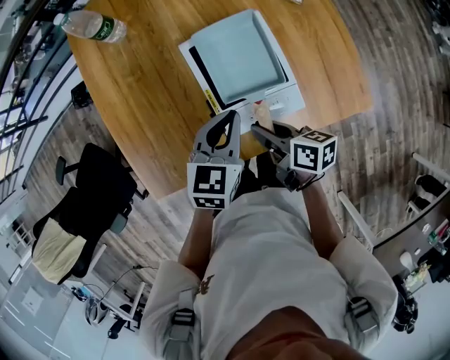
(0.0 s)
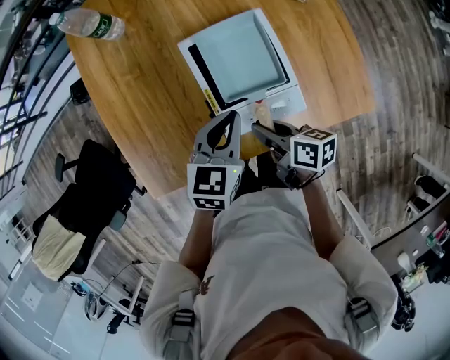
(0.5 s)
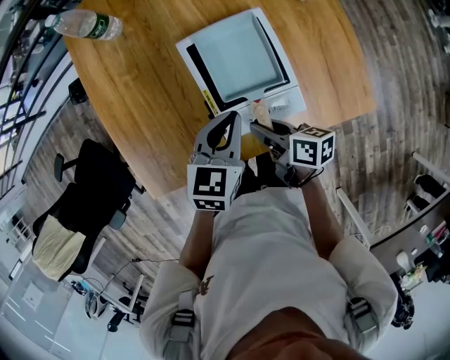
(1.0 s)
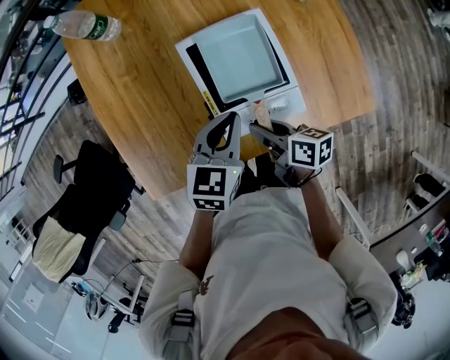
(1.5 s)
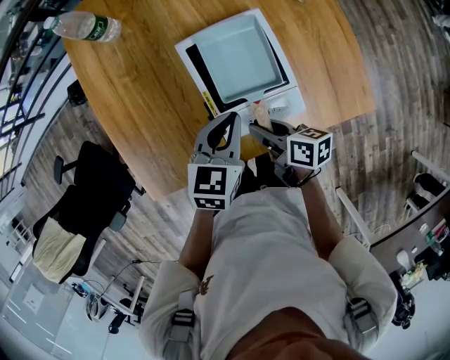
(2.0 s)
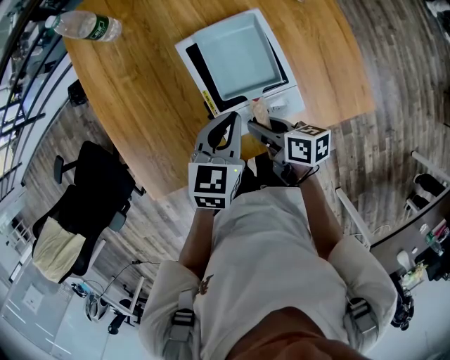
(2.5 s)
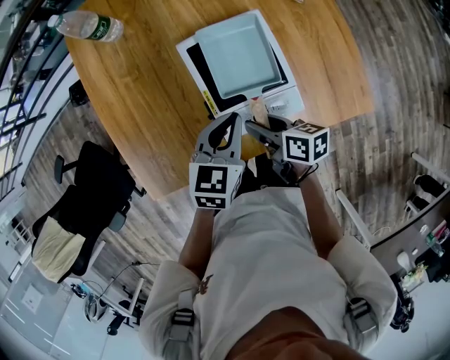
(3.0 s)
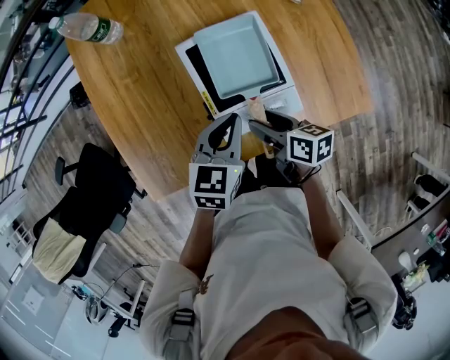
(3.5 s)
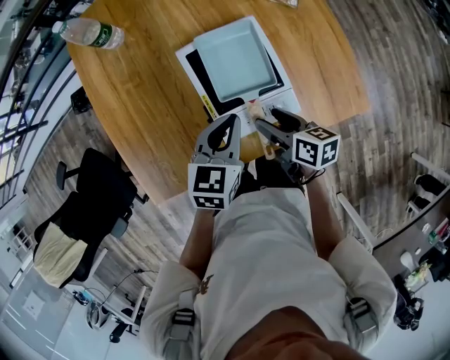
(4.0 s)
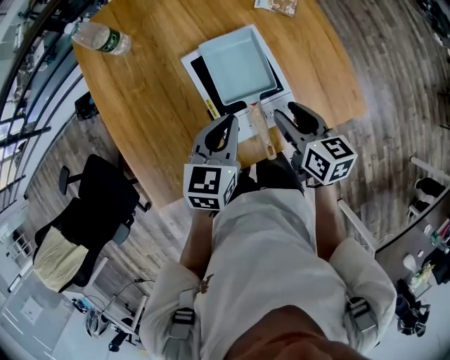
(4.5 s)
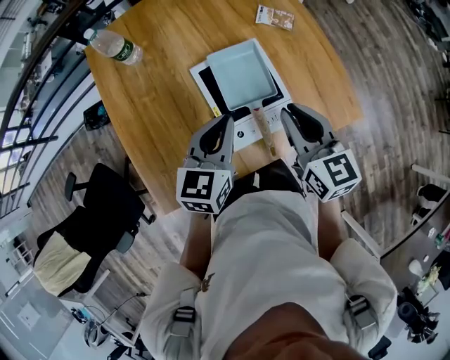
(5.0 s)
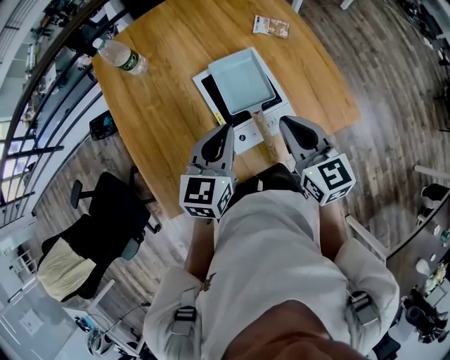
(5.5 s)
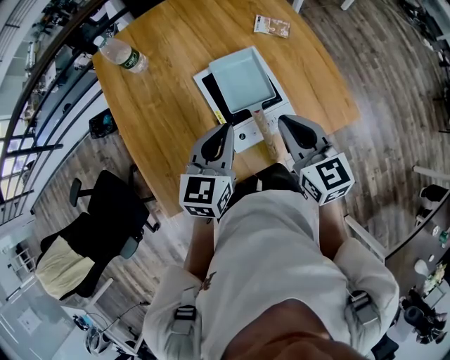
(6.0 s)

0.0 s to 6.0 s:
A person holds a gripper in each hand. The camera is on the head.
0.0 to 2.0 s: The grippers move only a little.
2.0 to 4.0 s: The right gripper opens its fingers.
4.0 to 6.0 s: The left gripper travels upward by some 10 cm. The right gripper shifts some 20 cm upward, changes its angle by approximately 40 degrees, and closes up.

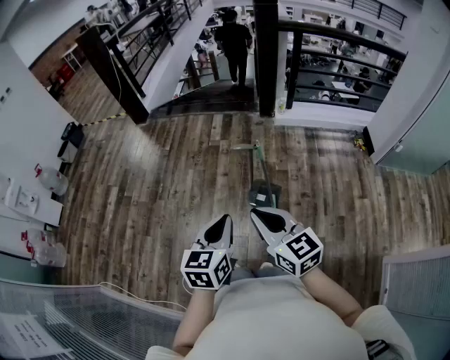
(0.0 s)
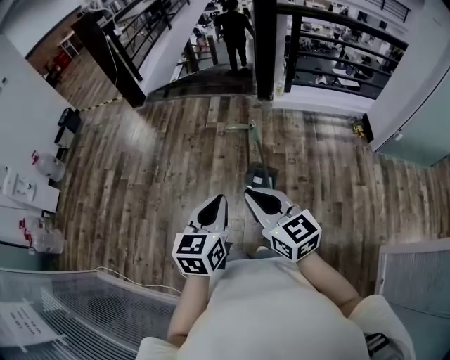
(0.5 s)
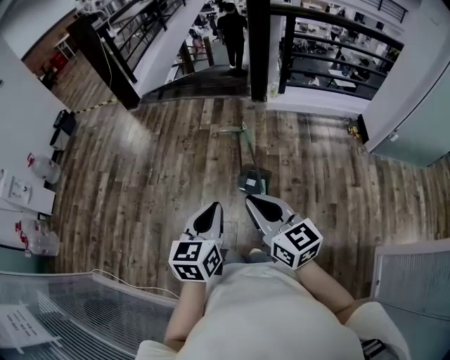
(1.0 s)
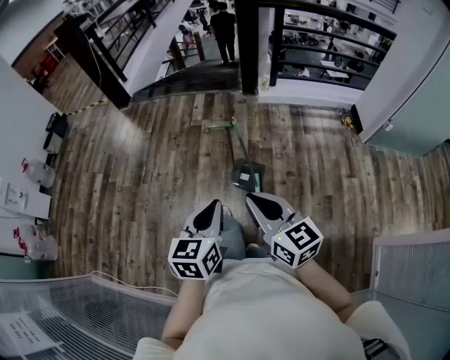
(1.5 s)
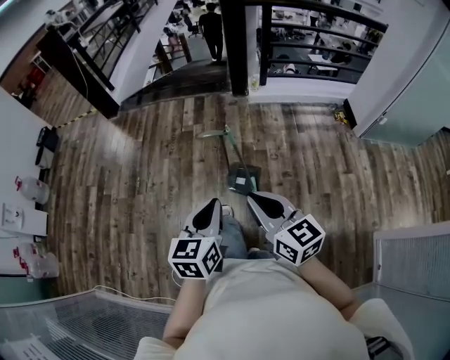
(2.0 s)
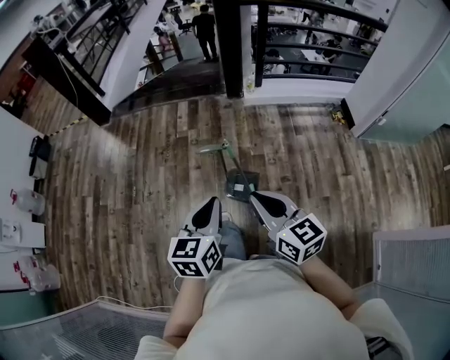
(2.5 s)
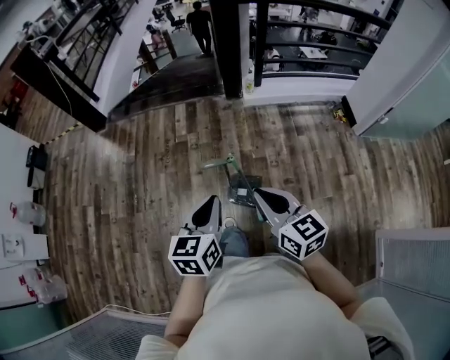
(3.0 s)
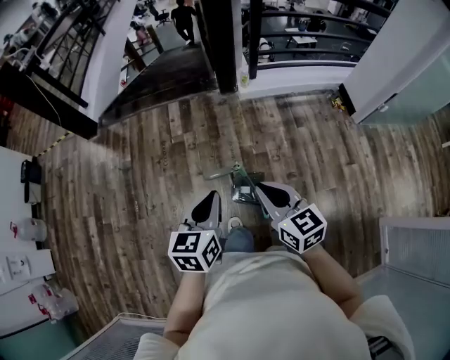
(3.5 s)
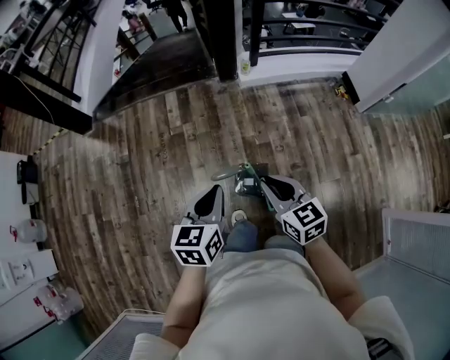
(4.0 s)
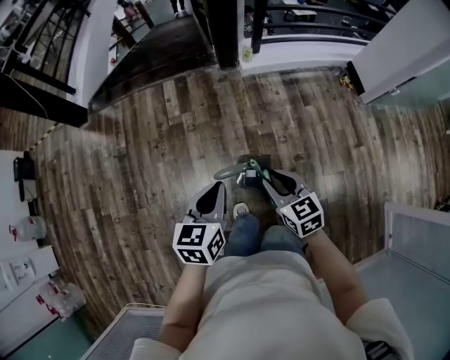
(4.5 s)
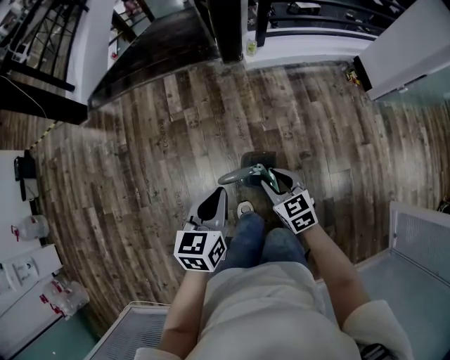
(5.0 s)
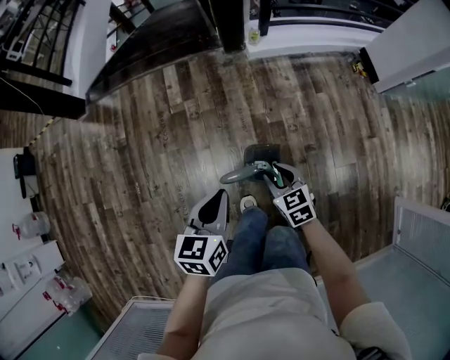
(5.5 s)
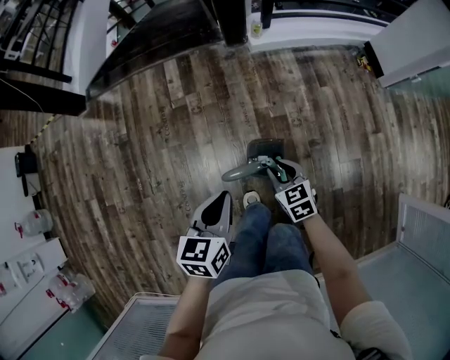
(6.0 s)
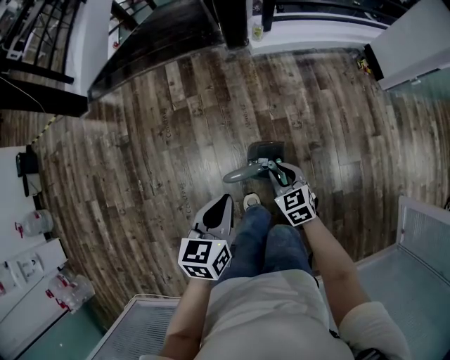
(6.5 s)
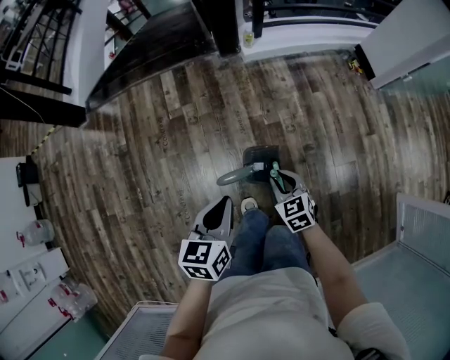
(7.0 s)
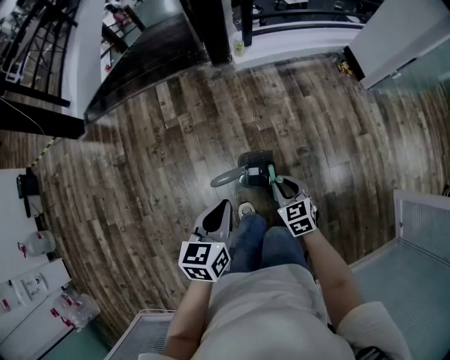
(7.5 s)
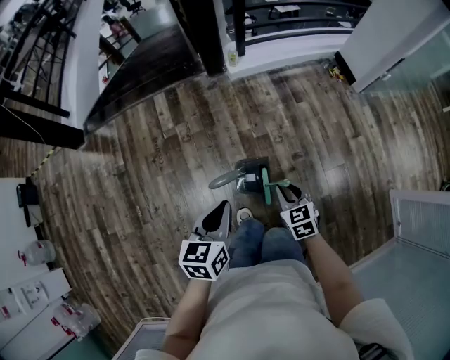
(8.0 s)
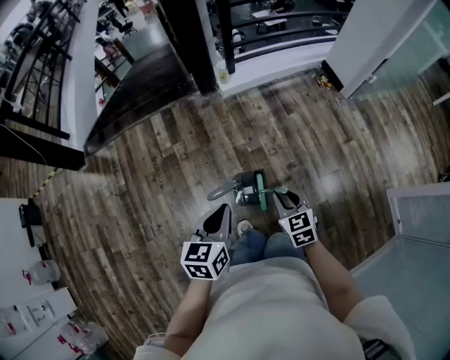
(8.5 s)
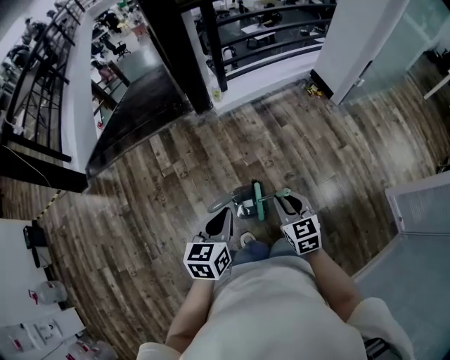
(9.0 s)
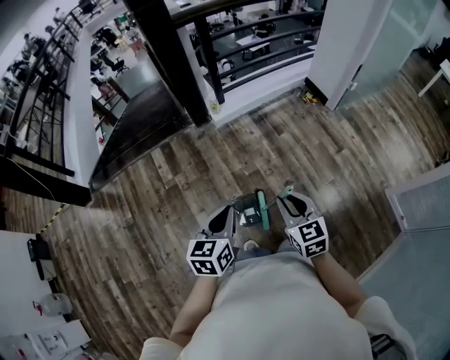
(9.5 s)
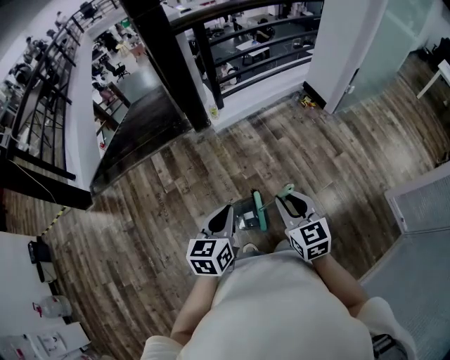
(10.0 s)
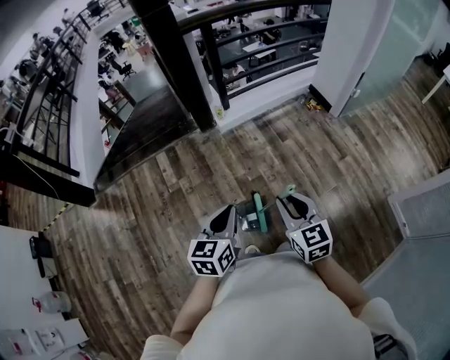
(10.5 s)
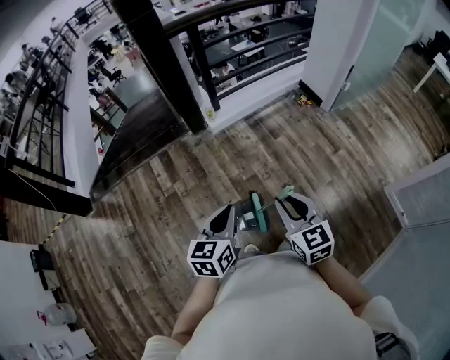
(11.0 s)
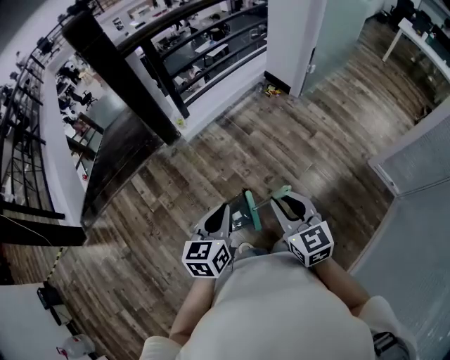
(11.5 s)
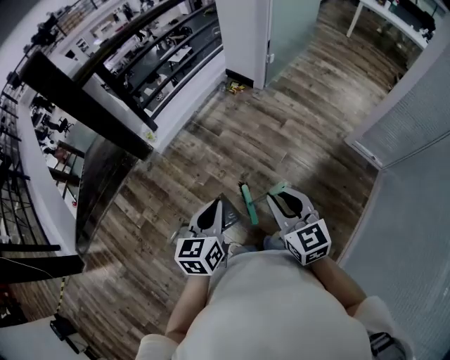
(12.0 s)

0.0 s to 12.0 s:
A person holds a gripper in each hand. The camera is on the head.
0.0 to 2.0 s: Both grippers travel together to the right, some 10 cm.
2.0 to 4.0 s: The left gripper heads forward, covering some 30 cm, while the right gripper shifts approximately 30 cm forward and downward.
4.0 to 6.0 s: The right gripper goes some 25 cm downward. Meanwhile the left gripper travels downward by roughly 10 cm.
6.0 to 8.0 s: The right gripper heads to the right, upward and backward, covering approximately 10 cm, while the left gripper heads upward, covering roughly 5 cm.
8.0 to 10.0 s: The right gripper shifts about 20 cm upward, and rotates roughly 20 degrees, while the left gripper moves upward, about 5 cm.
10.0 to 12.0 s: Both grippers move to the right, roughly 20 cm. The right gripper turns by about 20 degrees. The left gripper changes its angle by roughly 20 degrees.

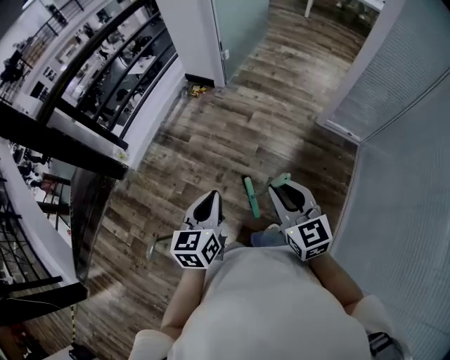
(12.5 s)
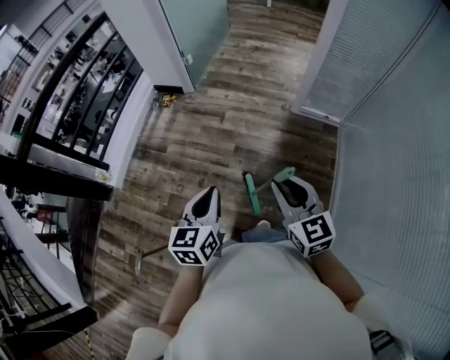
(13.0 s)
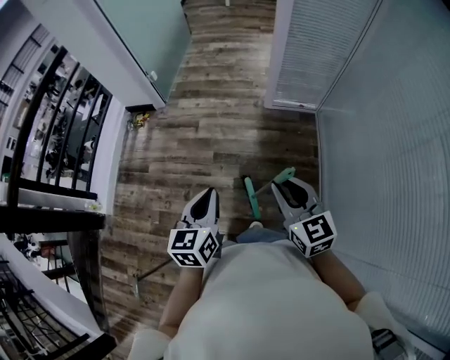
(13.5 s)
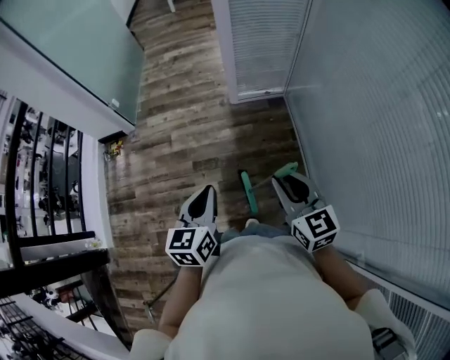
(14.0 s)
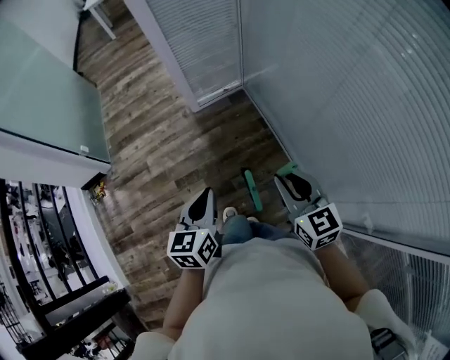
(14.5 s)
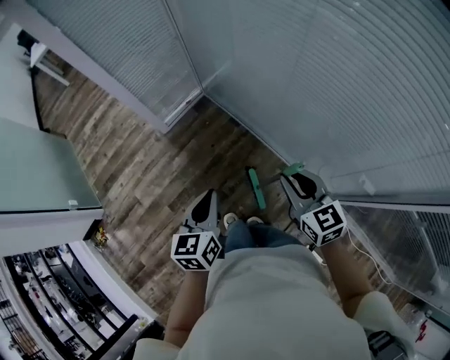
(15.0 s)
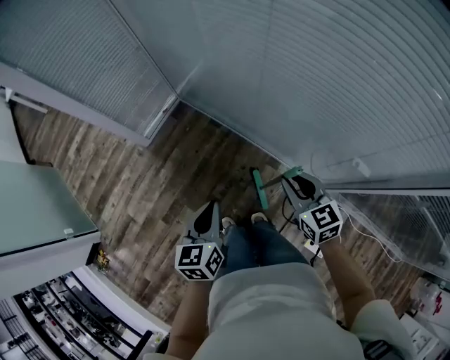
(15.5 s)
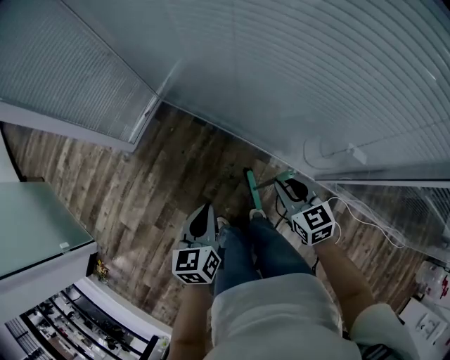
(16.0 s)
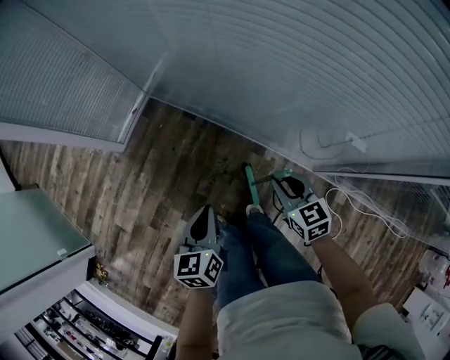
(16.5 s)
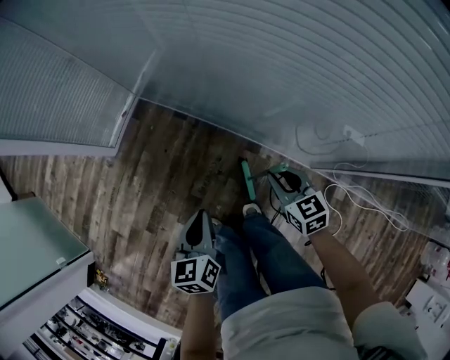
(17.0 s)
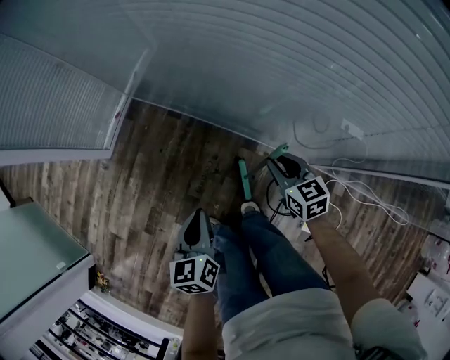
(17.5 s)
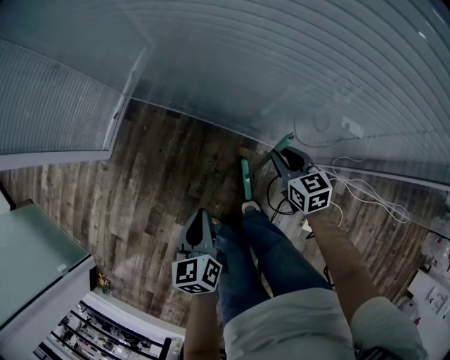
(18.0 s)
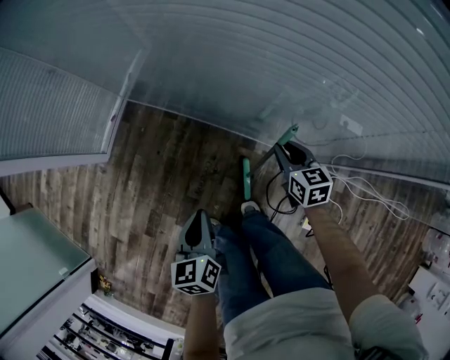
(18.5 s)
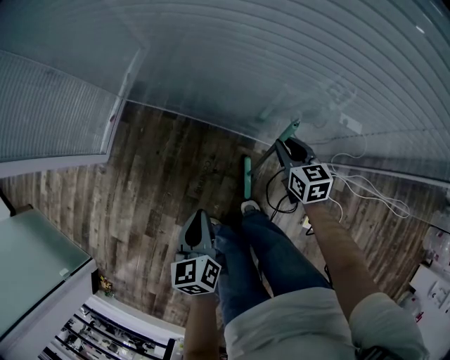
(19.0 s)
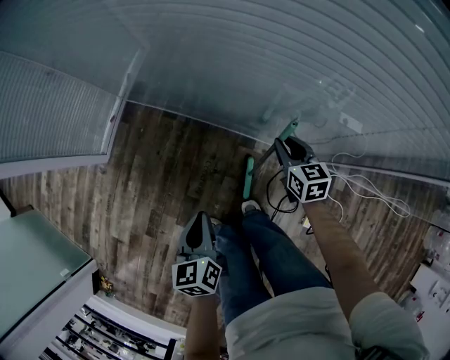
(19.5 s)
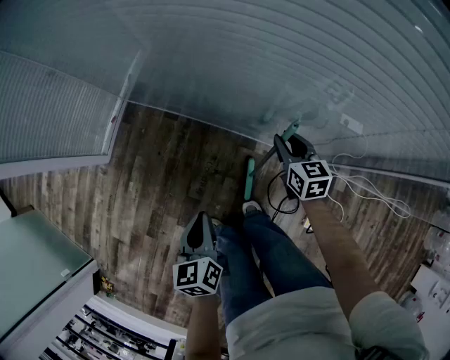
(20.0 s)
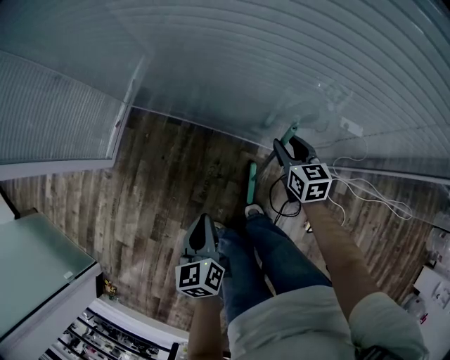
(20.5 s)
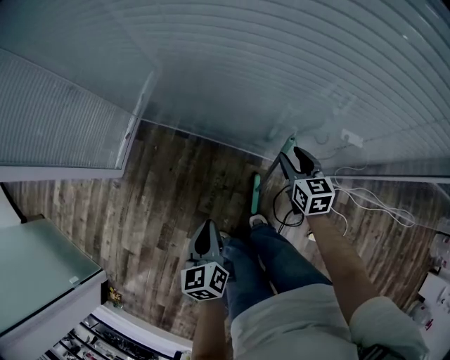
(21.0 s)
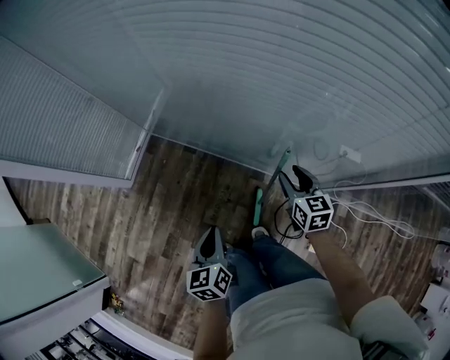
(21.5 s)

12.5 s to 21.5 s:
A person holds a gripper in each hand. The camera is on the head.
12.5 to 14.5 s: The right gripper shifts by about 35 cm, and swivels about 50 degrees; the left gripper moves about 40 cm, and changes its angle by roughly 50 degrees.
14.5 to 17.0 s: The right gripper is displaced downward by approximately 25 cm, and changes its angle by about 40 degrees. Meanwhile the left gripper shifts by roughly 25 cm, and turns by approximately 30 degrees.
17.0 to 19.5 s: The right gripper goes roughly 10 cm forward and to the right.
19.5 to 21.5 s: The right gripper is displaced upward by roughly 10 cm, and opens up. The left gripper moves upward, about 10 cm.
